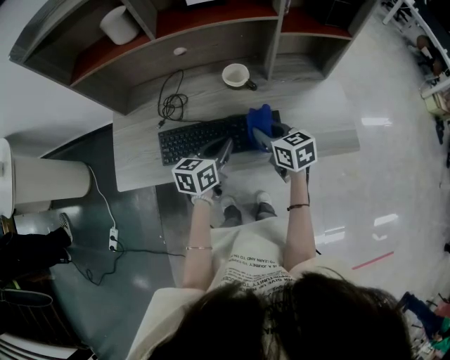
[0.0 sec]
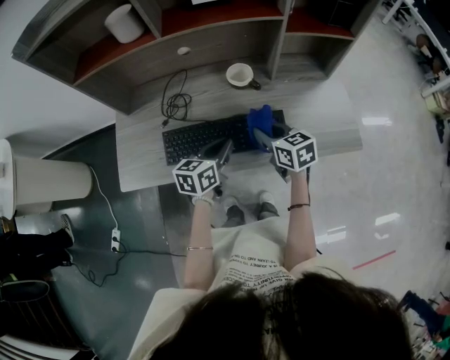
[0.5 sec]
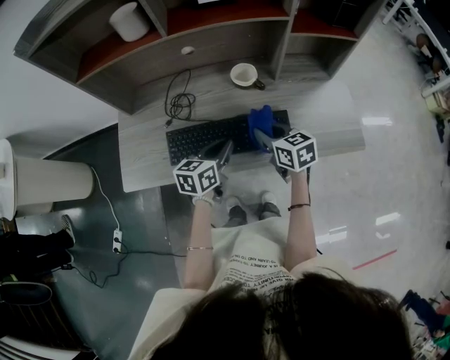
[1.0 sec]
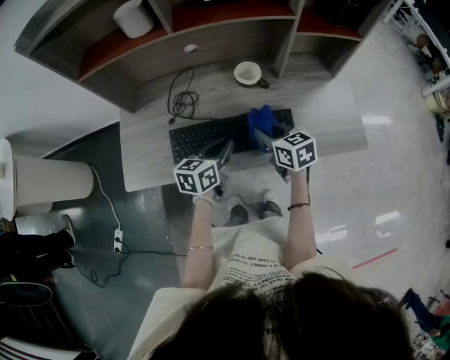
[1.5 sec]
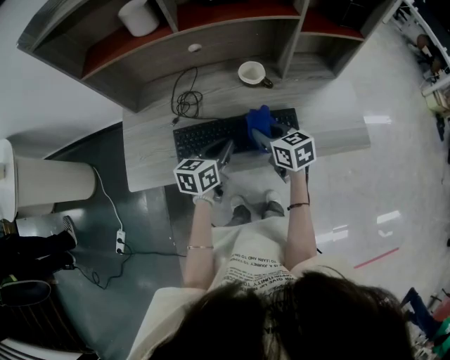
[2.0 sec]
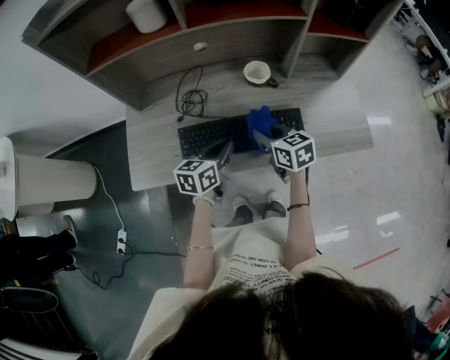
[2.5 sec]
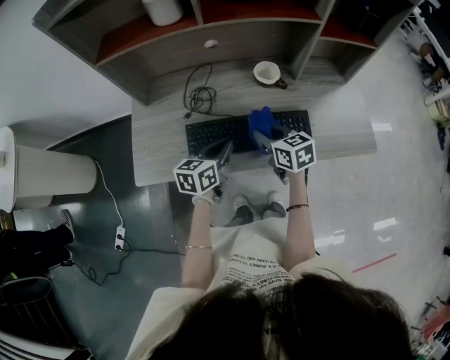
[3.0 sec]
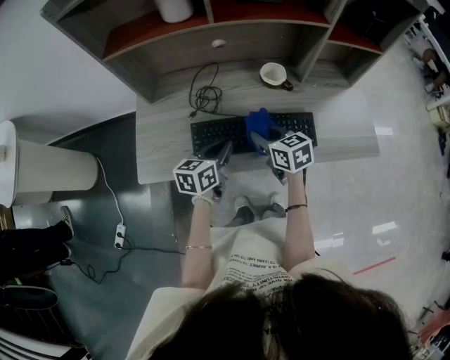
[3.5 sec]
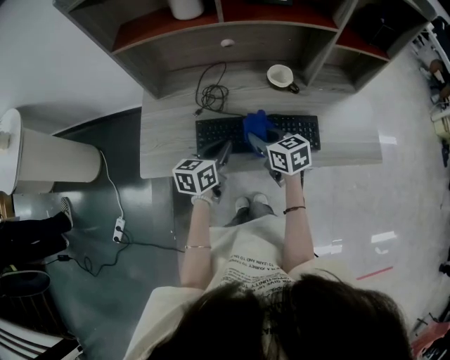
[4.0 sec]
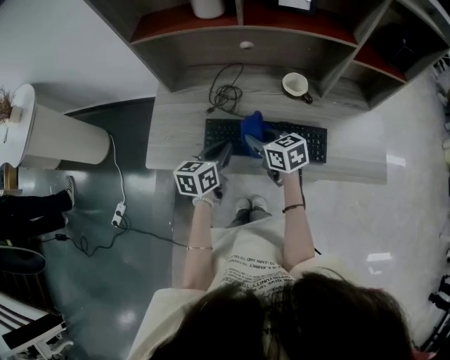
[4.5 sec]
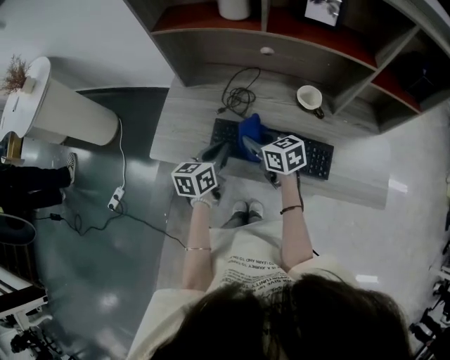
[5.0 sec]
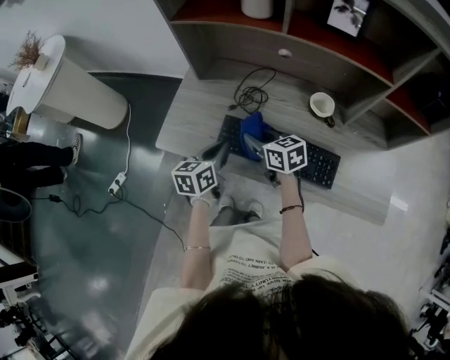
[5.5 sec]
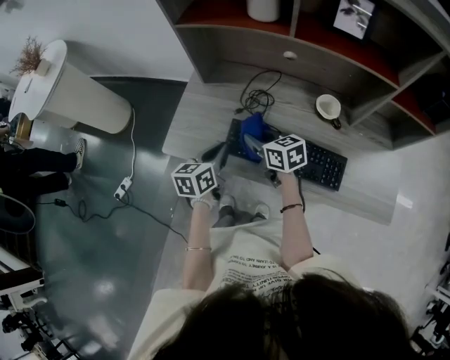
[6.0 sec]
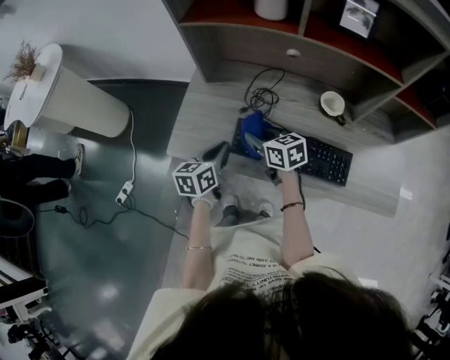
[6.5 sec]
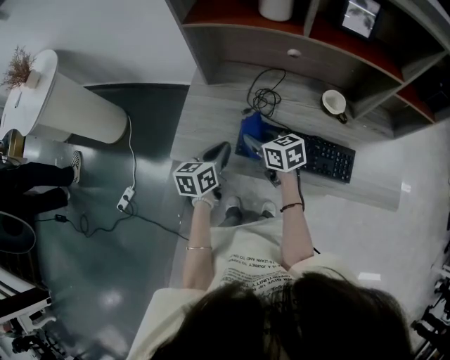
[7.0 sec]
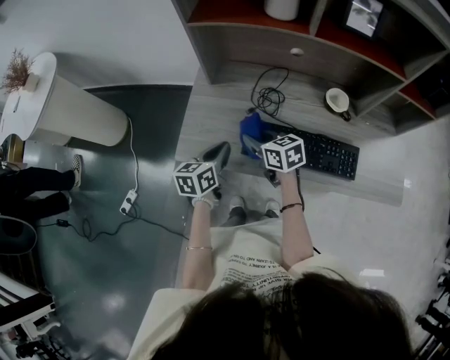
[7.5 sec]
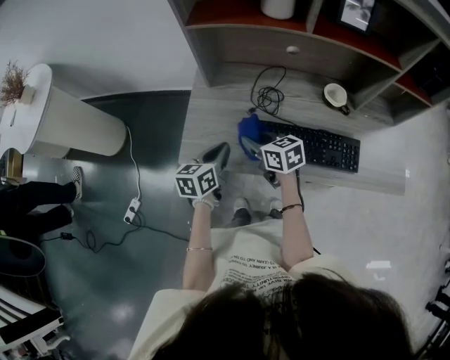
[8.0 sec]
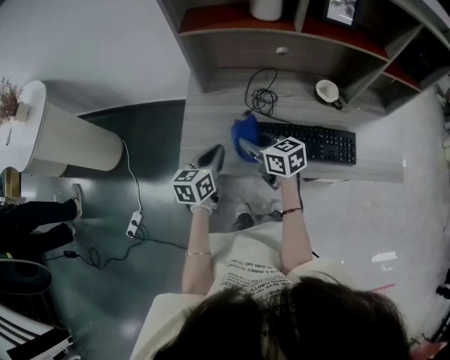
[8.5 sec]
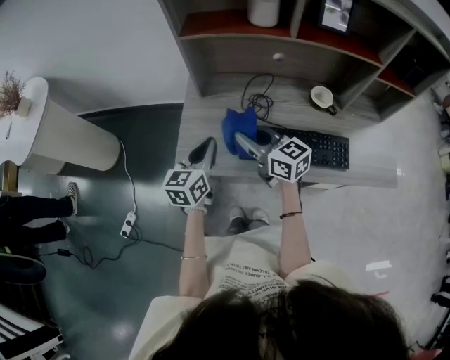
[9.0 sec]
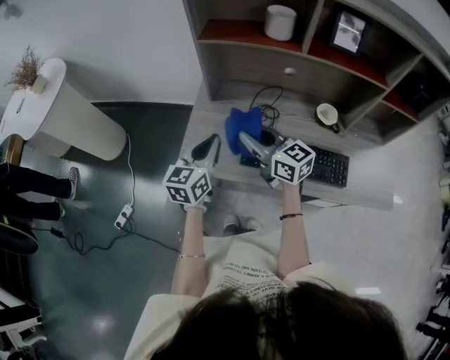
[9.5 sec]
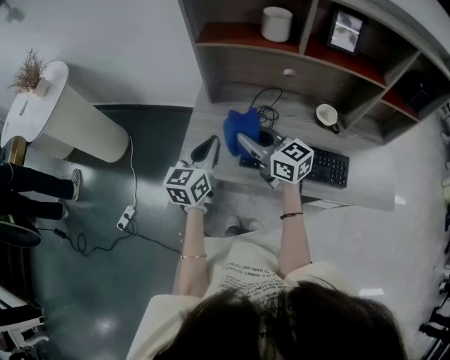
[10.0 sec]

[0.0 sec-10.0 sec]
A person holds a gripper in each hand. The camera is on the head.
0.0 sec to 2.0 sec: The grippers both shift to the left by roughly 5 cm.
2.0 sec to 4.0 sec: The grippers both shift to the left by about 10 cm.
4.0 sec to 6.0 sec: The right gripper travels to the left and forward by some 10 cm, and rotates roughly 20 degrees, while the left gripper travels to the left by roughly 10 cm, and rotates about 20 degrees.
6.0 sec to 8.0 sec: The two grippers go roughly 10 cm to the left.
8.0 sec to 10.0 sec: The two grippers go approximately 15 cm upward. The right gripper turns by roughly 30 degrees. Meanwhile the left gripper turns by roughly 20 degrees.

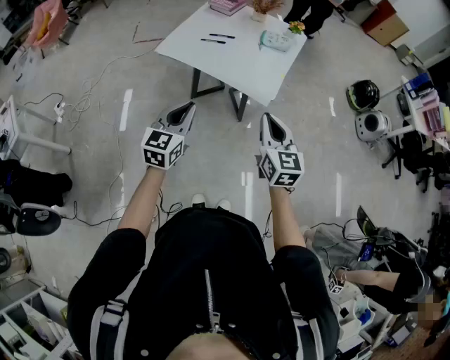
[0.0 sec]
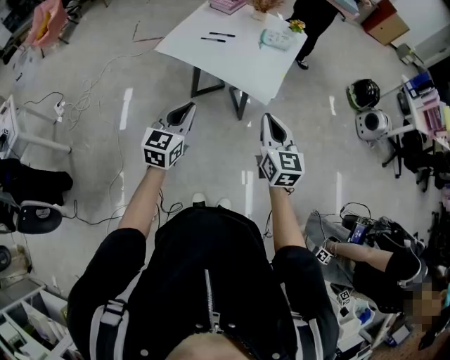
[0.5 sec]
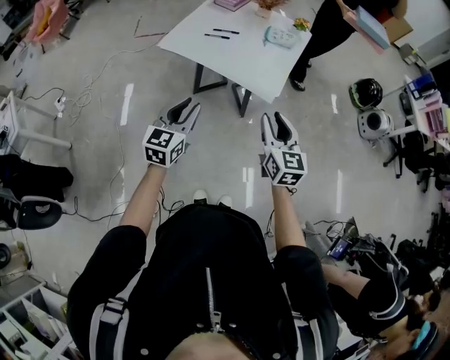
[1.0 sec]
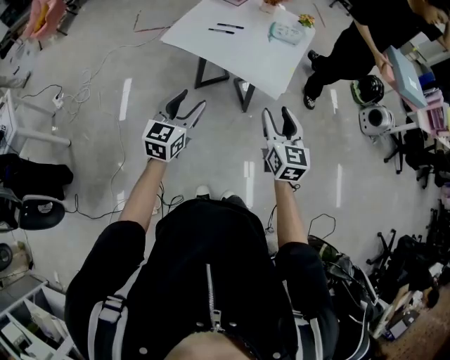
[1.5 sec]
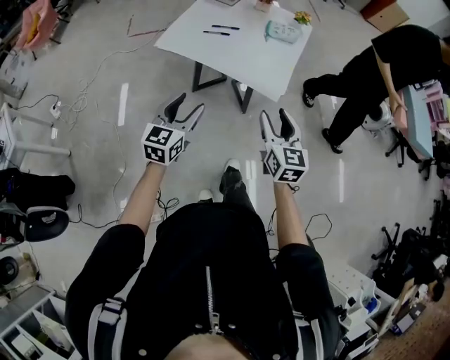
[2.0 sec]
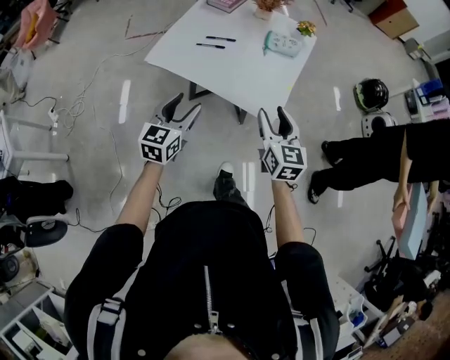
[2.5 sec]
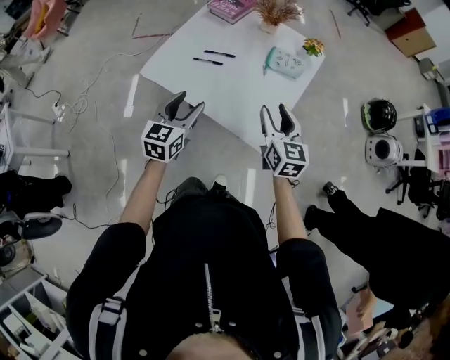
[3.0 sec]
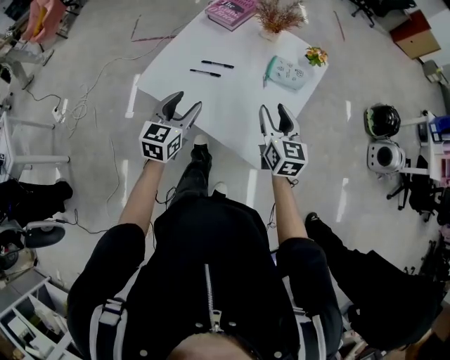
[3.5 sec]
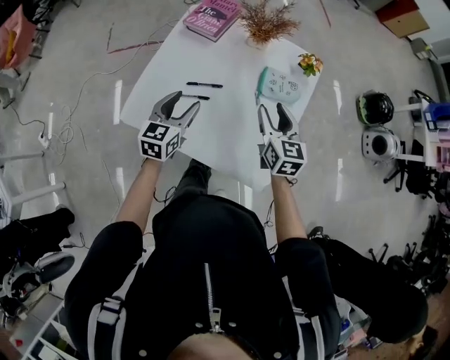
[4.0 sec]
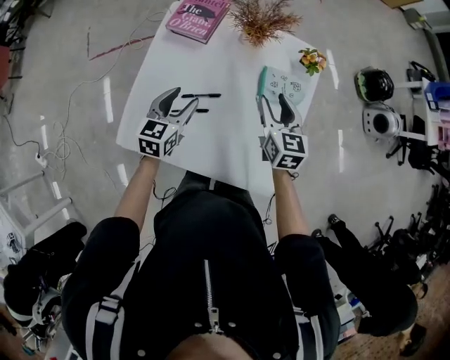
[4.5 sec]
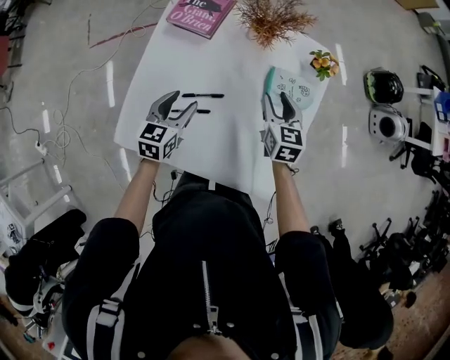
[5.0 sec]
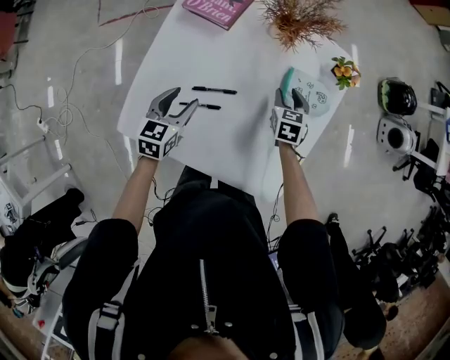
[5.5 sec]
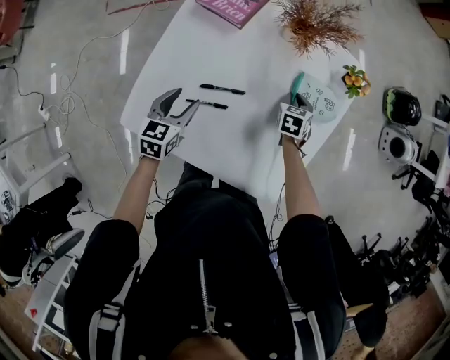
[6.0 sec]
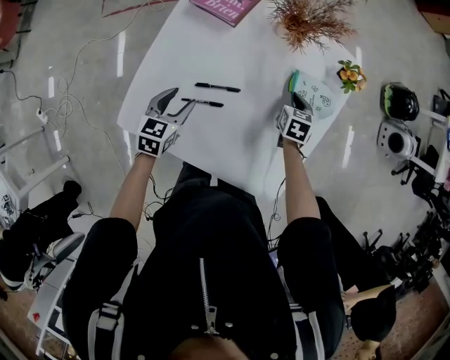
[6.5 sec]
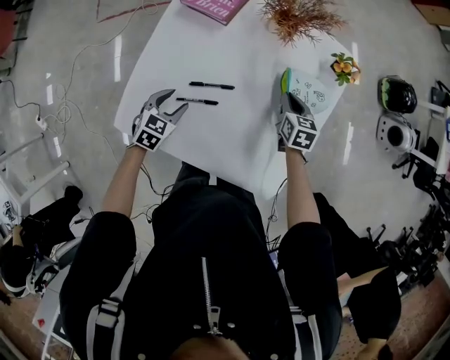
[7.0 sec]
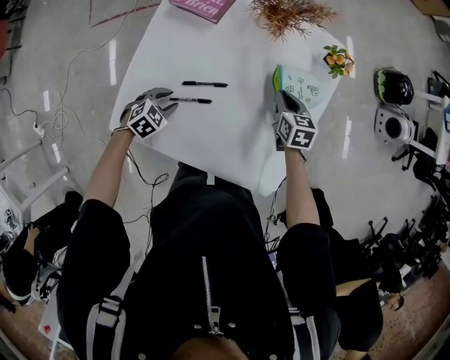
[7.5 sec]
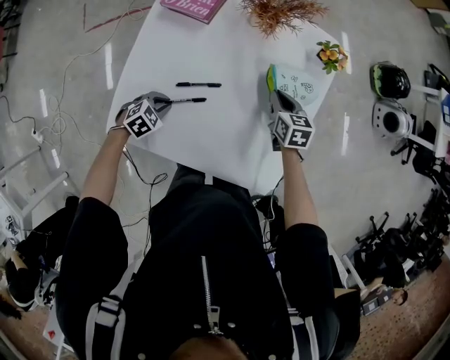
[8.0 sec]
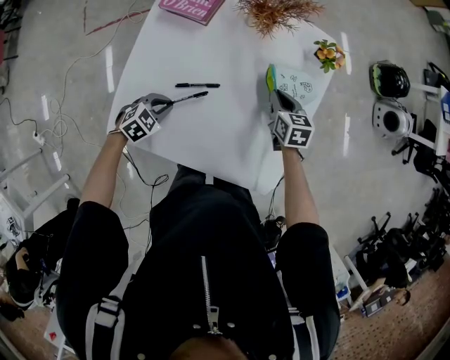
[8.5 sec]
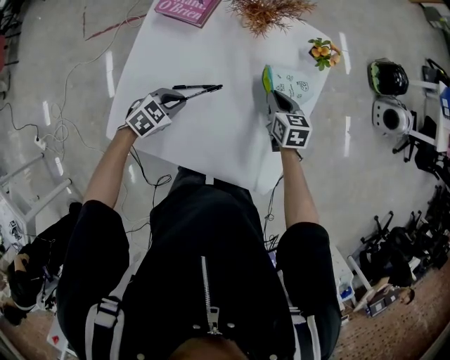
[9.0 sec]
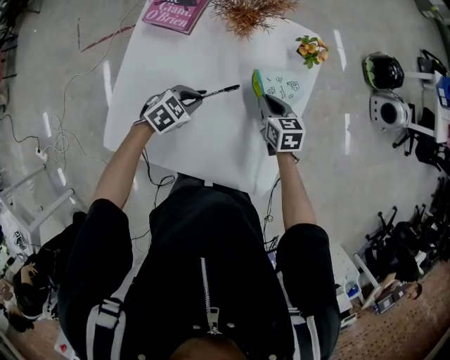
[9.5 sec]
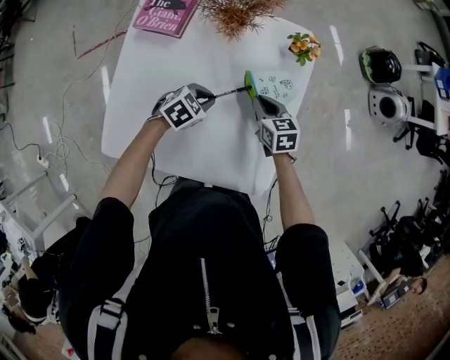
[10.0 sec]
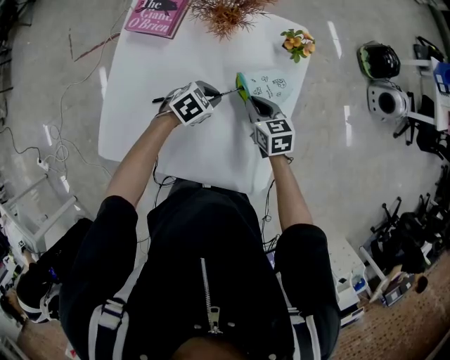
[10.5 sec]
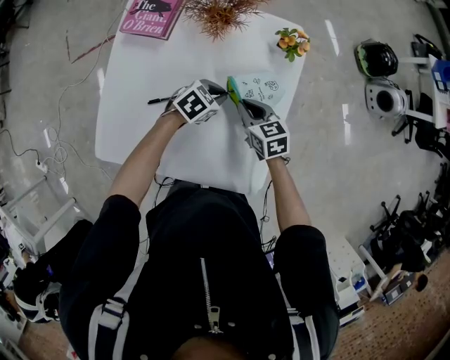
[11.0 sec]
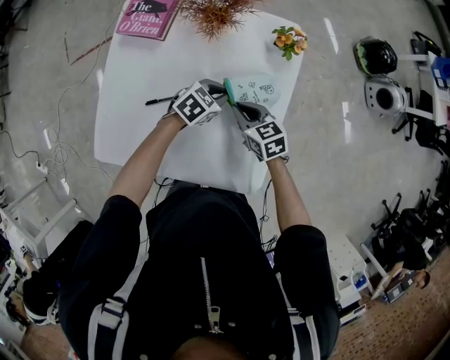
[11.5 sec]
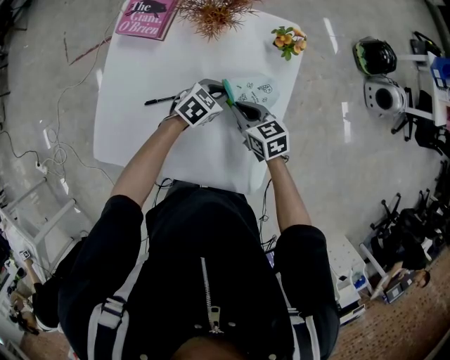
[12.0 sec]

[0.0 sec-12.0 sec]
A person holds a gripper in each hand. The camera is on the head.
0.0 sec to 2.0 sec: The right gripper opens its fingers. Meanwhile the left gripper shifts by some 5 cm, and opens up.
2.0 sec to 4.0 sec: The pair of grippers is taken forward, approximately 50 cm.
4.0 sec to 6.0 sec: The left gripper moves downward, to the left and forward, roughly 20 cm; the right gripper moves downward and forward, some 30 cm, tilts its fingers about 40 degrees downward, and closes up.
6.0 sec to 8.0 sec: The left gripper heads downward, covering about 10 cm, rotates approximately 50 degrees, and closes. The right gripper is displaced upward by roughly 5 cm, and rotates about 20 degrees.
8.0 sec to 10.0 sec: The left gripper shifts some 25 cm to the right, forward and upward.
10.0 sec to 12.0 sec: The left gripper goes approximately 10 cm to the right and forward.

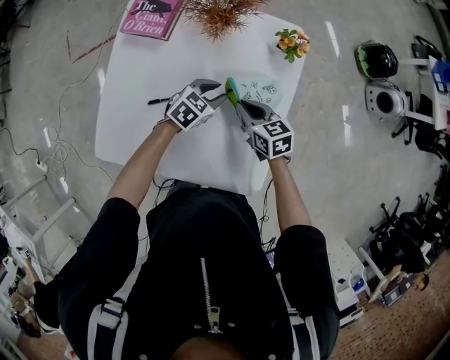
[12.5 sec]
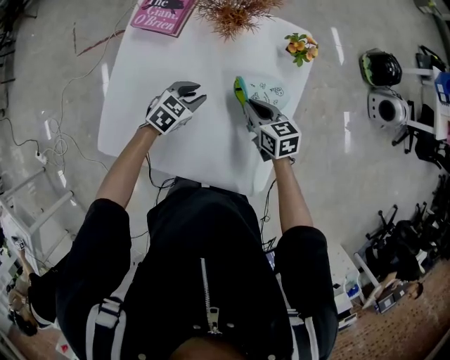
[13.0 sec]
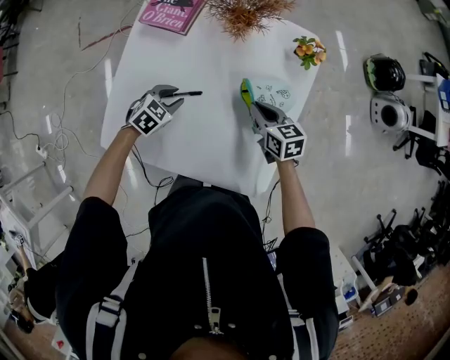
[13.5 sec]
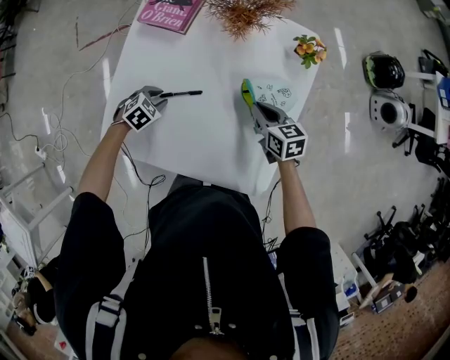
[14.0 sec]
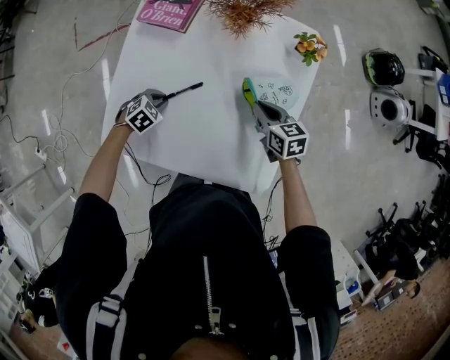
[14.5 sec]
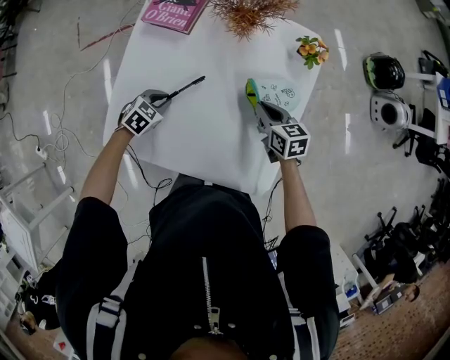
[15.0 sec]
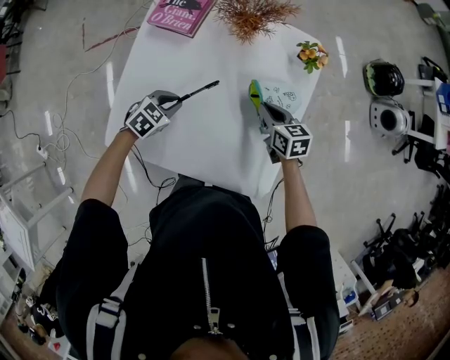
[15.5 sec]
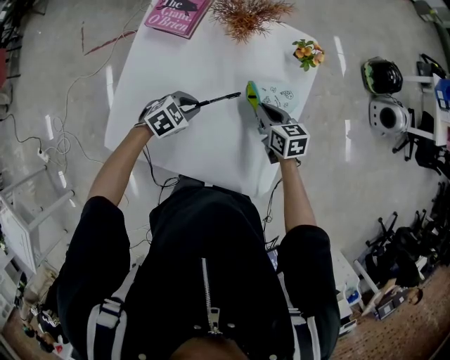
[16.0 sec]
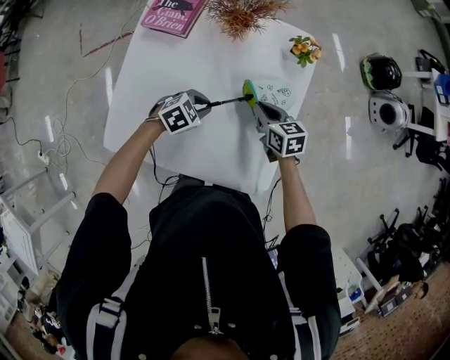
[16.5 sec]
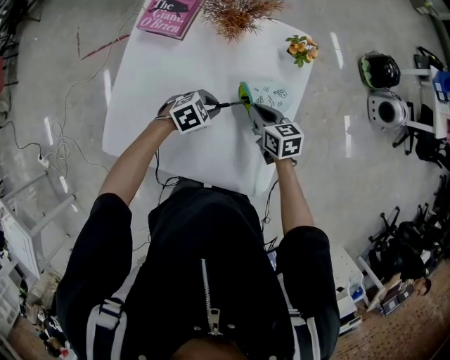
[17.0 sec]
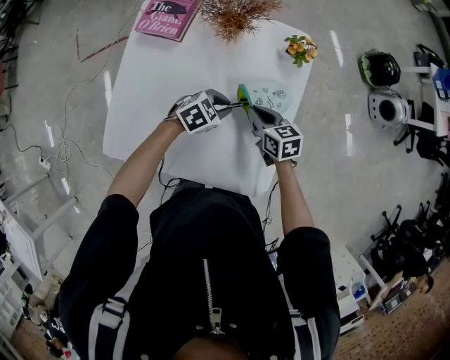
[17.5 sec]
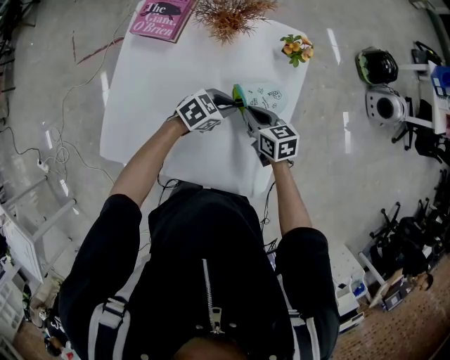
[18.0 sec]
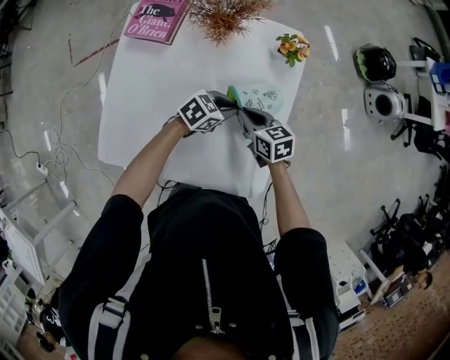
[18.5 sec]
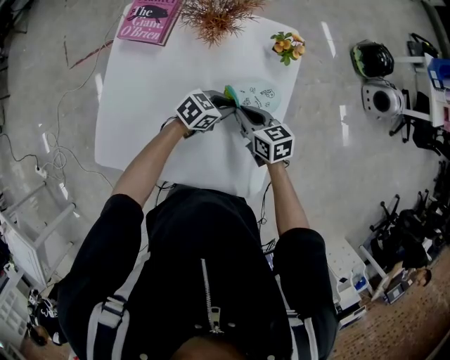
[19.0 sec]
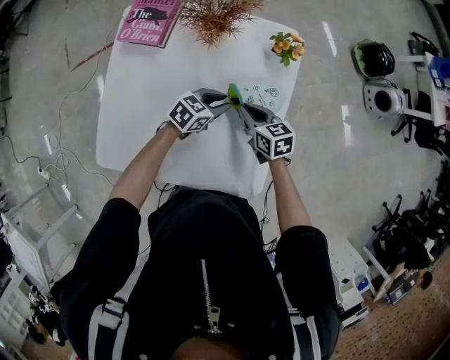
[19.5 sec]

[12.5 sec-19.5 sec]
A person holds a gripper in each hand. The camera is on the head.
12.5 sec to 14.5 sec: The left gripper goes approximately 25 cm to the left, and swivels approximately 30 degrees.
14.5 sec to 16.0 sec: The left gripper moves to the right and upward, some 15 cm.
16.0 sec to 17.5 sec: The left gripper is displaced to the right by about 10 cm.
17.5 sec to 19.5 sec: The left gripper turns by some 20 degrees.
